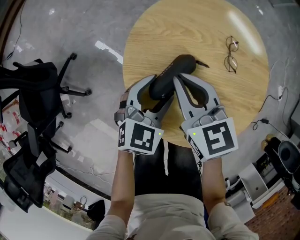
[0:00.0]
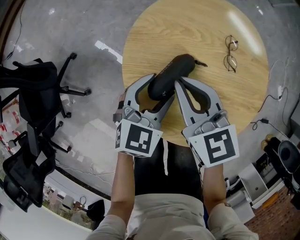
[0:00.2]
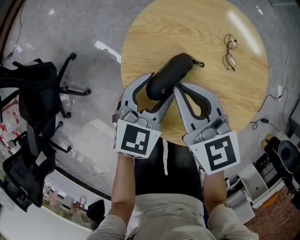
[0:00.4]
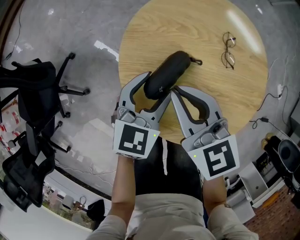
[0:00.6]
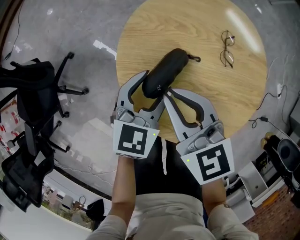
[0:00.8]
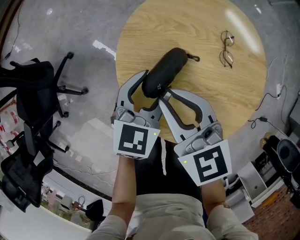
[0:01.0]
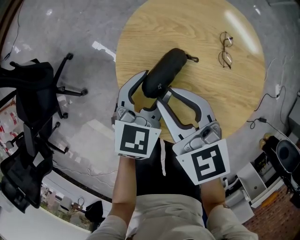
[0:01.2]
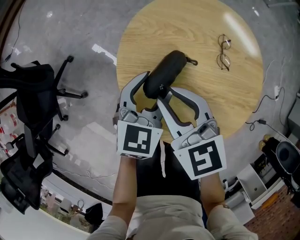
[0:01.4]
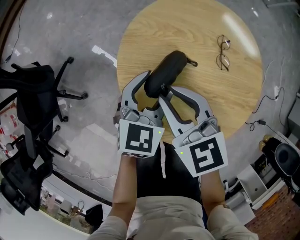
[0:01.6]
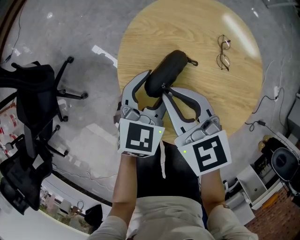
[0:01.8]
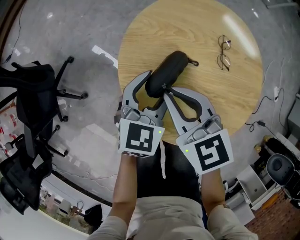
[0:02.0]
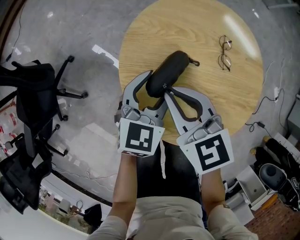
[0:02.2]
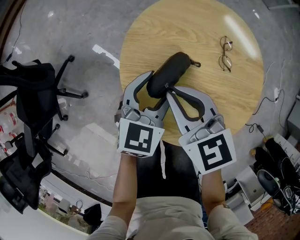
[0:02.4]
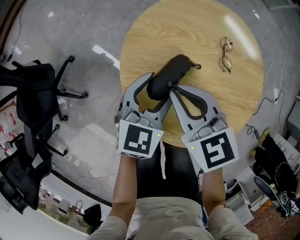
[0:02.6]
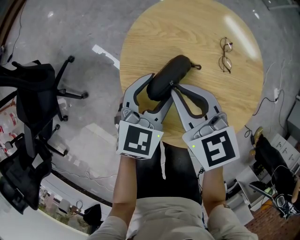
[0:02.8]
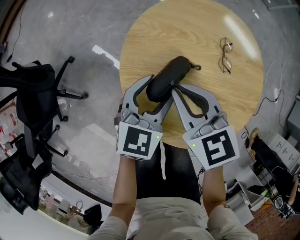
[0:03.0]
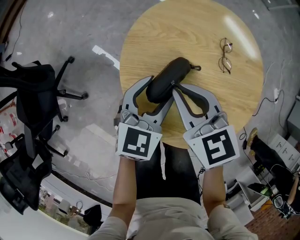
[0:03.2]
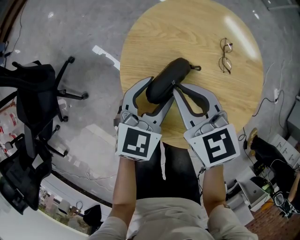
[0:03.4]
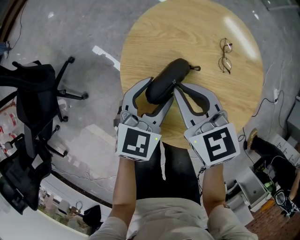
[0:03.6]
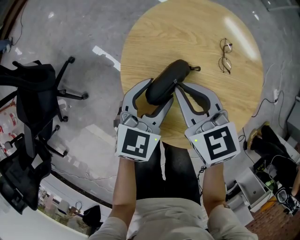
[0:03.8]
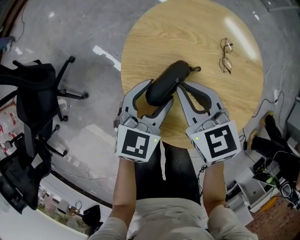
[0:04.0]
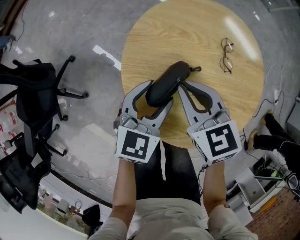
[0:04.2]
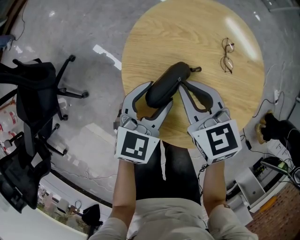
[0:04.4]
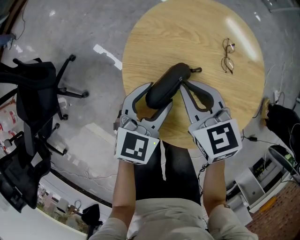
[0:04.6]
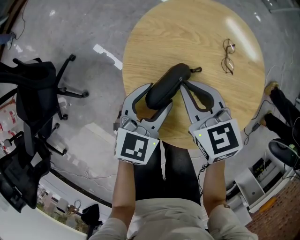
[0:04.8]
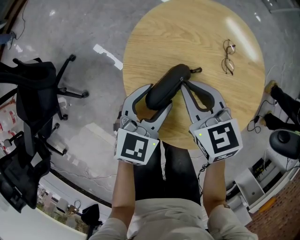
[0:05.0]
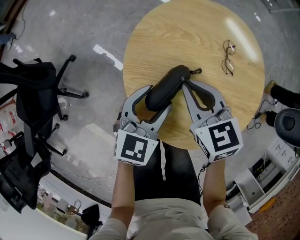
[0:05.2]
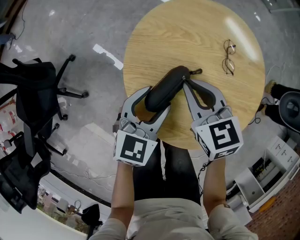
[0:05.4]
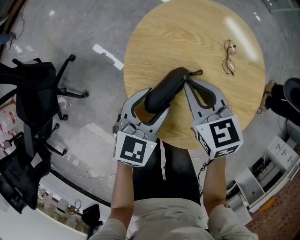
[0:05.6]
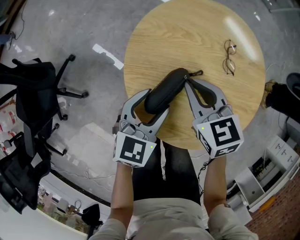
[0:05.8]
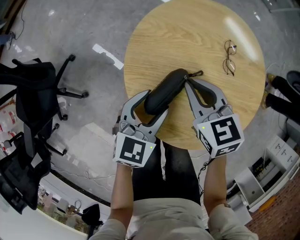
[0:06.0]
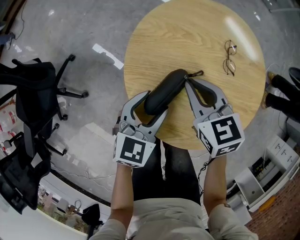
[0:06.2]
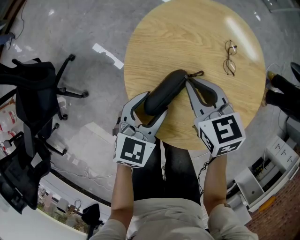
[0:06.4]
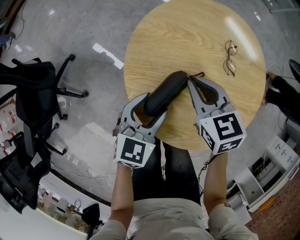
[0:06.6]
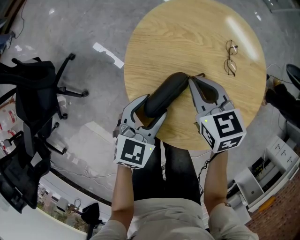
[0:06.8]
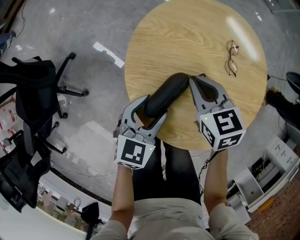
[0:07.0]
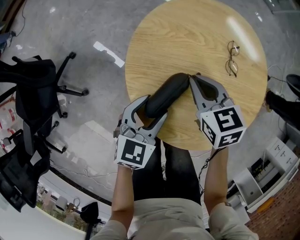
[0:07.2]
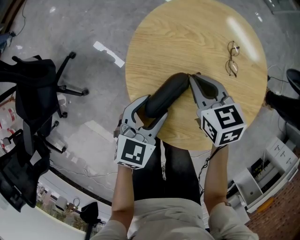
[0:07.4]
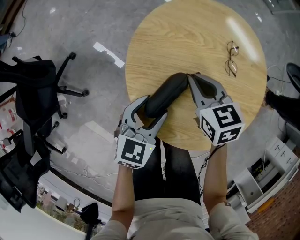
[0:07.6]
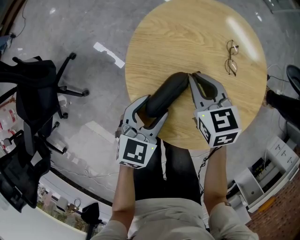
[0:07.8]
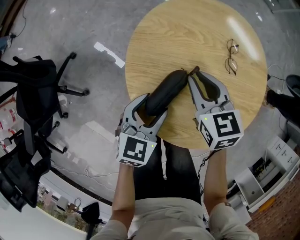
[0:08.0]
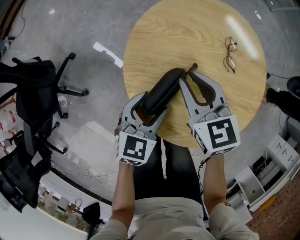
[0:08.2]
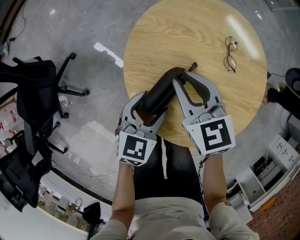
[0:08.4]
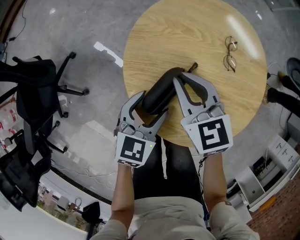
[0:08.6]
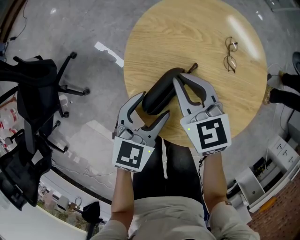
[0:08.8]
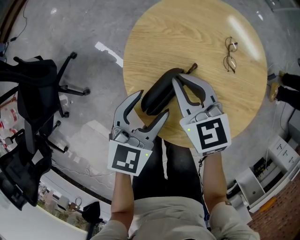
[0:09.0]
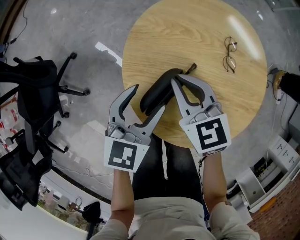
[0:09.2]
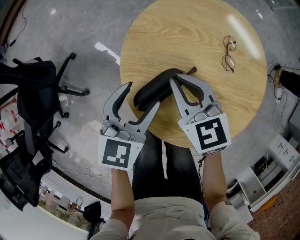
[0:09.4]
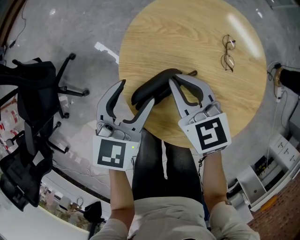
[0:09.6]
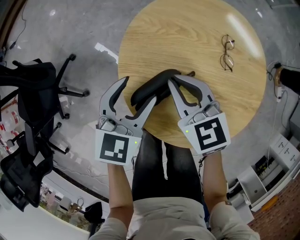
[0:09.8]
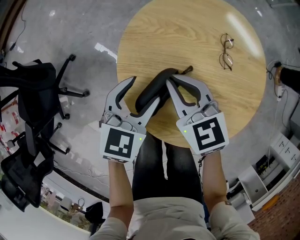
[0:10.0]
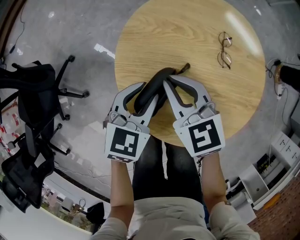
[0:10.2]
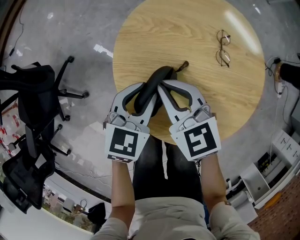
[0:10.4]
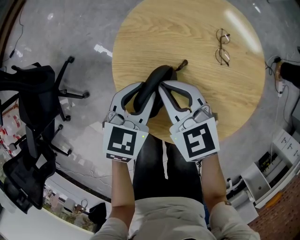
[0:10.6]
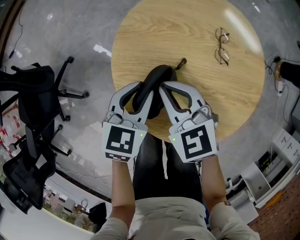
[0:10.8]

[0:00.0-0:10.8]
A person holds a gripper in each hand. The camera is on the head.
0:01.6 to 0:04.6: The grippers stay close to where they were, moving slightly.
0:04.6 to 0:06.2: There are only small adjustments of the grippers.
0:06.2 to 0:07.8: The grippers move only a little.
0:07.8 to 0:09.2: The right gripper goes roughly 5 cm to the left, while the left gripper goes approximately 5 cm upward.
0:09.2 to 0:10.8: The left gripper closes up.

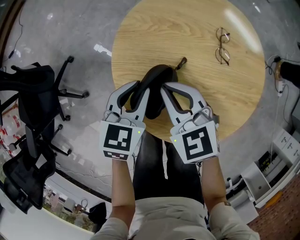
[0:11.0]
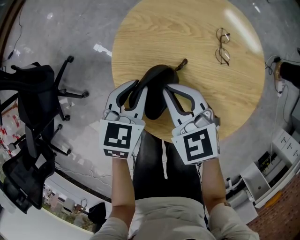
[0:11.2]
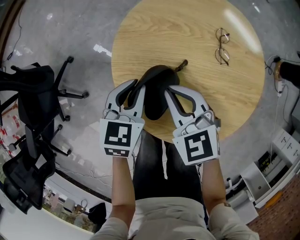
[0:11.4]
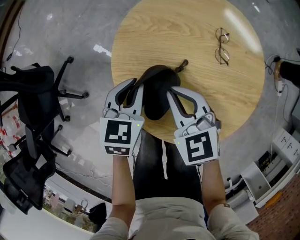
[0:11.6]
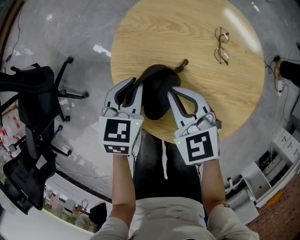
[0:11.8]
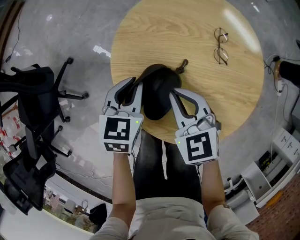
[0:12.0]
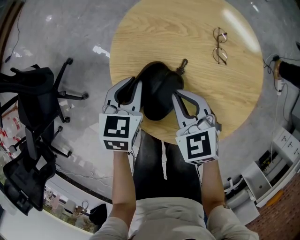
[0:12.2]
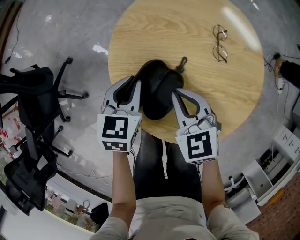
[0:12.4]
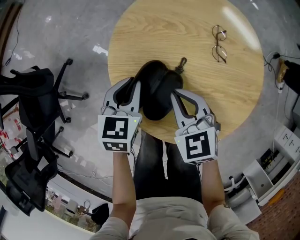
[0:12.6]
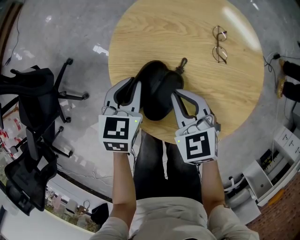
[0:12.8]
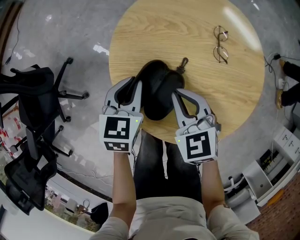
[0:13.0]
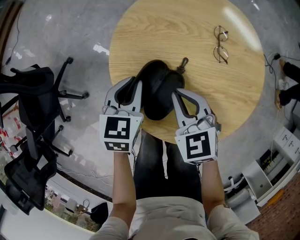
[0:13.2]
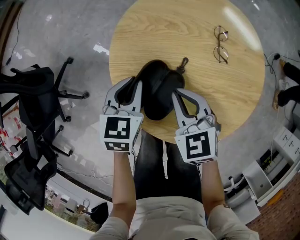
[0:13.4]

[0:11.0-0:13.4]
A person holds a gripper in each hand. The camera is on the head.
0:11.0 to 0:12.2: The right gripper moves roughly 5 cm.
0:12.2 to 0:13.4: The two grippers keep their place.

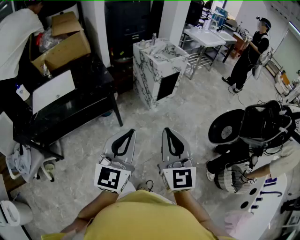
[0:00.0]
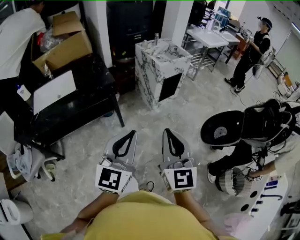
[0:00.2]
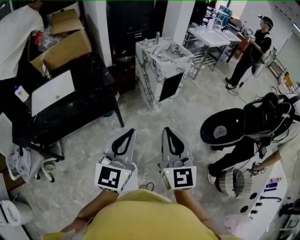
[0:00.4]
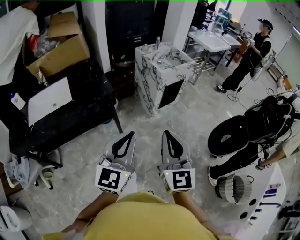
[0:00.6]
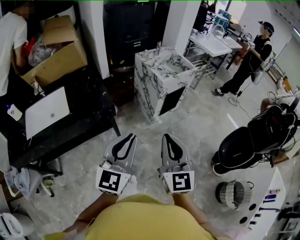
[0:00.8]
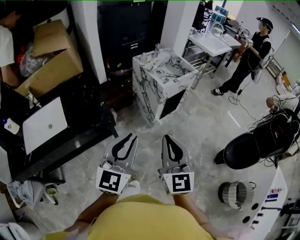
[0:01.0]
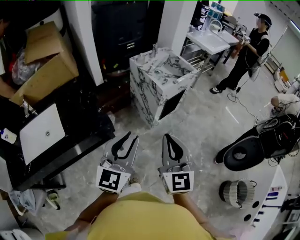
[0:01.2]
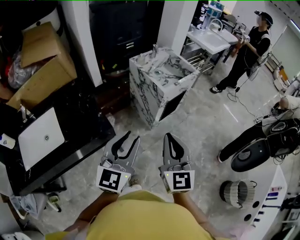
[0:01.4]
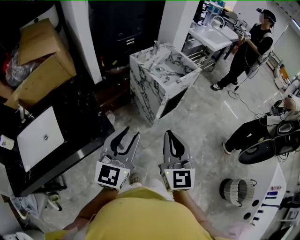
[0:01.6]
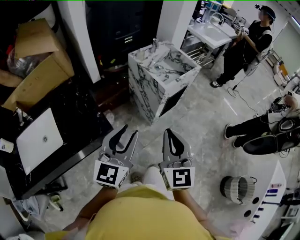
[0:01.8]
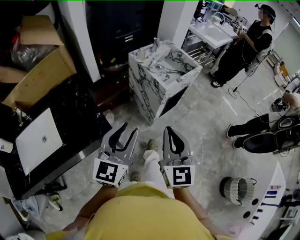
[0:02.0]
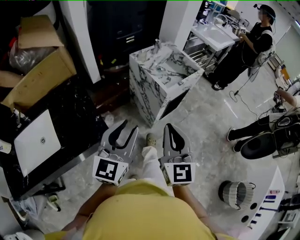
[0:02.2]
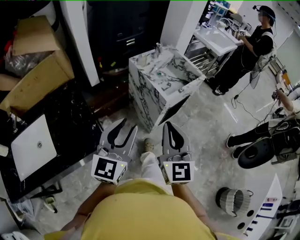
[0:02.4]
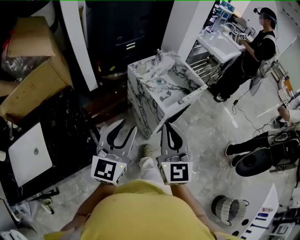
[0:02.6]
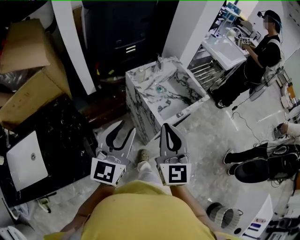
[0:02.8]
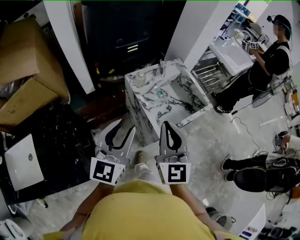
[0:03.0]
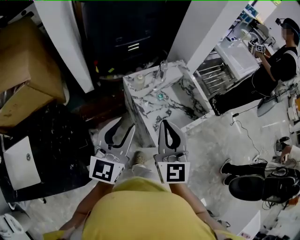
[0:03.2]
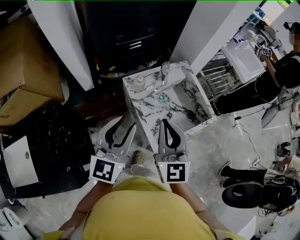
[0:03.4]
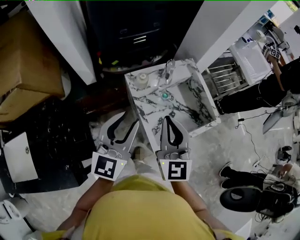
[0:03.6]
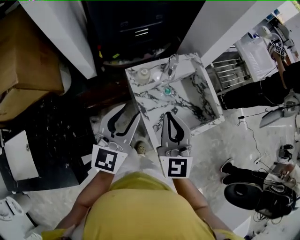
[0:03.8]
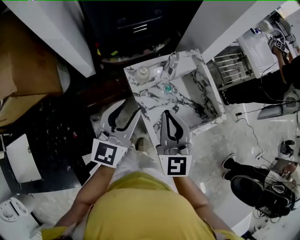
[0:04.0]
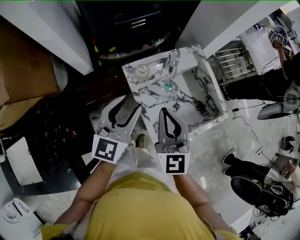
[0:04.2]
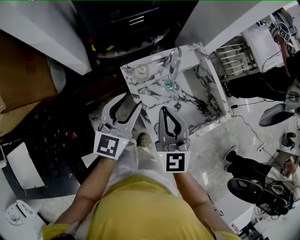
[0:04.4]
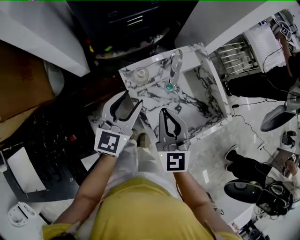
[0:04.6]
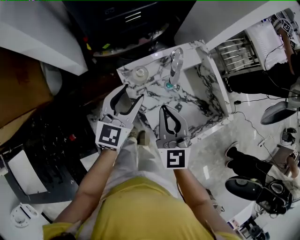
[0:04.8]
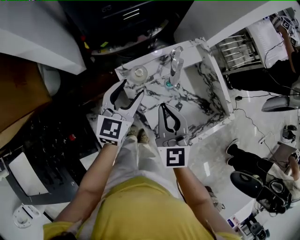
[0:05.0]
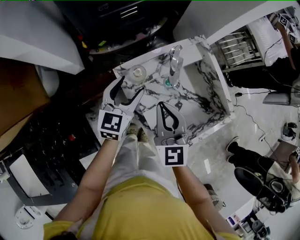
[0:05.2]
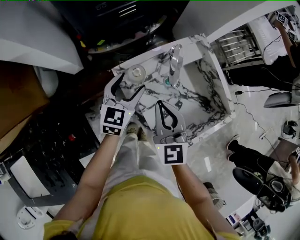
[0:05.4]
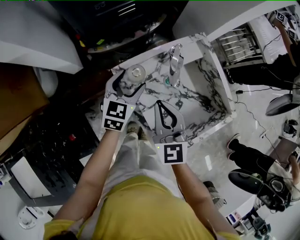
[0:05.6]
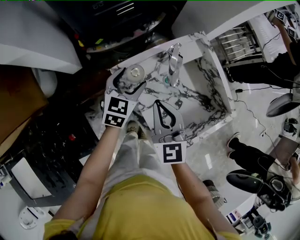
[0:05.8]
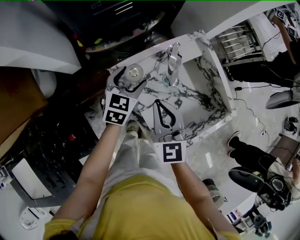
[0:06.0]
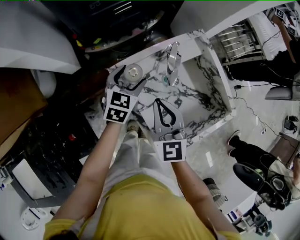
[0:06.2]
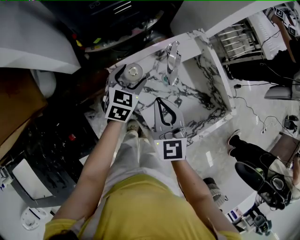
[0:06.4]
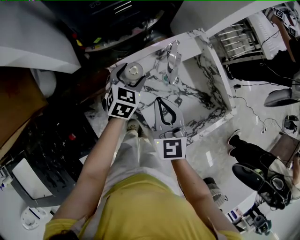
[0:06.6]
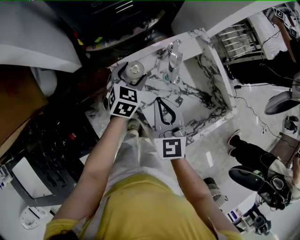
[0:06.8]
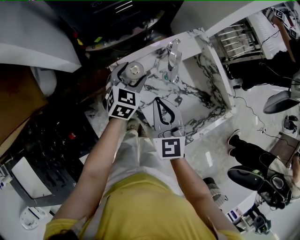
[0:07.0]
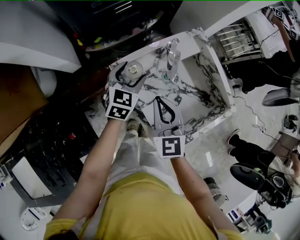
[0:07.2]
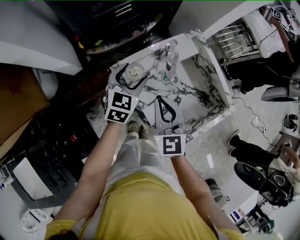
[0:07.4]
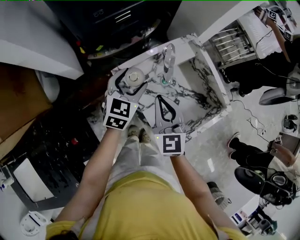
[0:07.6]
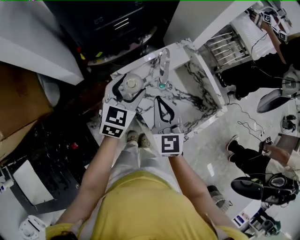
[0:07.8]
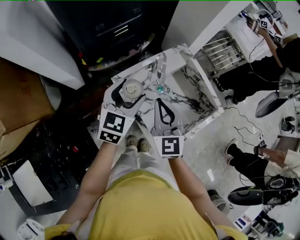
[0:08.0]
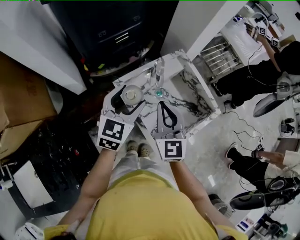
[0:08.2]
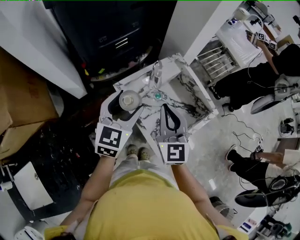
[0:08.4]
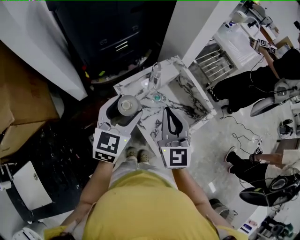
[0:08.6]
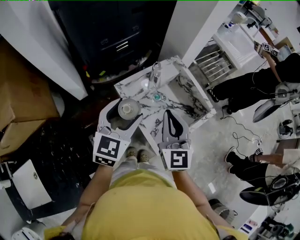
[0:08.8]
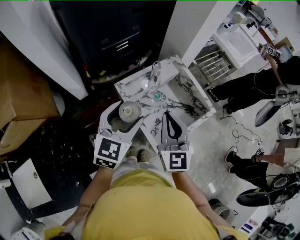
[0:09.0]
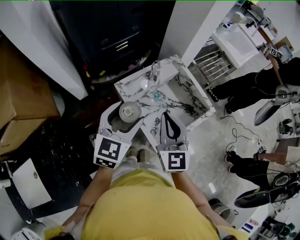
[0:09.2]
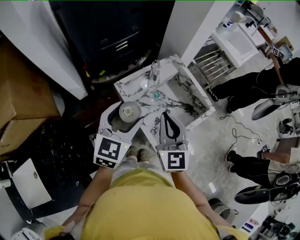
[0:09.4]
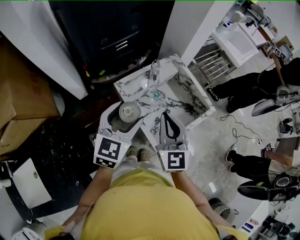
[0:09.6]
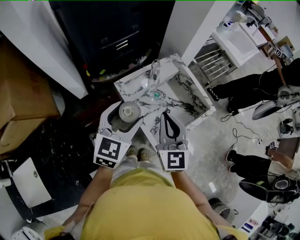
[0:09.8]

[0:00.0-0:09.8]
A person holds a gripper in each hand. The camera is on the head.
0:00.0 to 0:01.4: Both grippers move forward, approximately 35 cm.
0:01.4 to 0:02.8: The grippers both shift forward by roughly 30 cm.
0:02.8 to 0:04.2: Both grippers travel together forward, some 30 cm.
0:04.2 to 0:05.6: The left gripper shifts roughly 25 cm downward and forward, rotates roughly 20 degrees, and opens its fingers; the right gripper is displaced downward and forward by roughly 15 cm.
0:05.6 to 0:07.0: The grippers stay close to where they were, moving slightly.
0:07.0 to 0:08.4: The left gripper goes about 25 cm upward and backward, and swivels some 20 degrees, while the right gripper is displaced upward by some 15 cm.
0:08.4 to 0:09.8: The two grippers go roughly 5 cm backward.

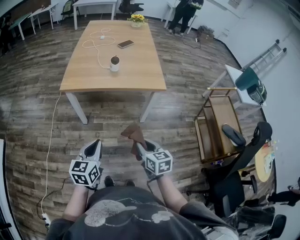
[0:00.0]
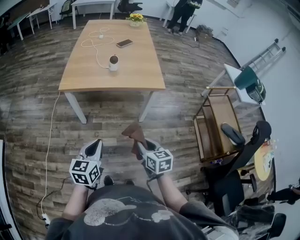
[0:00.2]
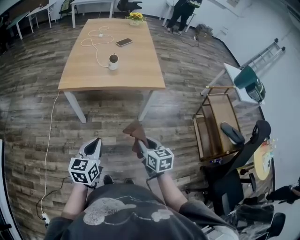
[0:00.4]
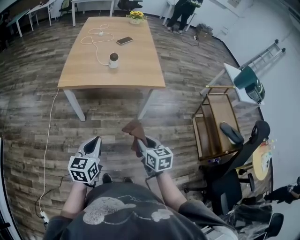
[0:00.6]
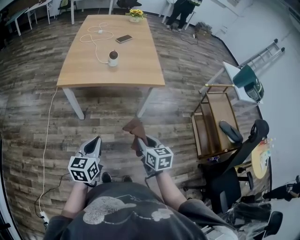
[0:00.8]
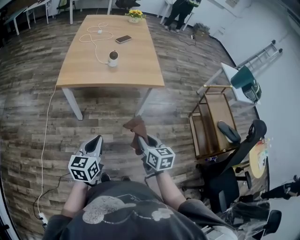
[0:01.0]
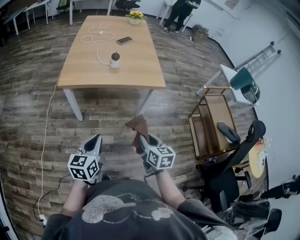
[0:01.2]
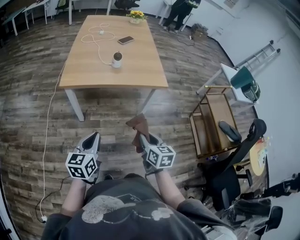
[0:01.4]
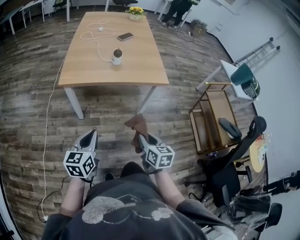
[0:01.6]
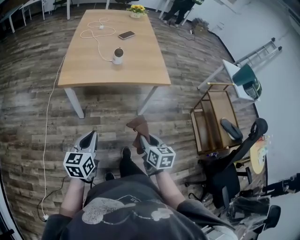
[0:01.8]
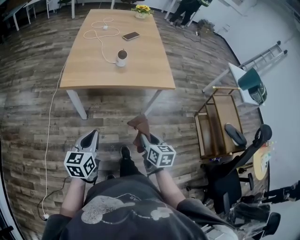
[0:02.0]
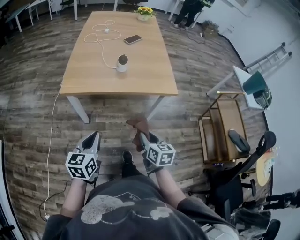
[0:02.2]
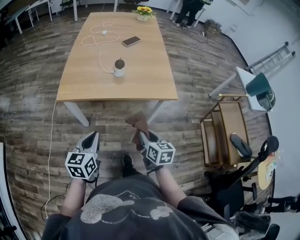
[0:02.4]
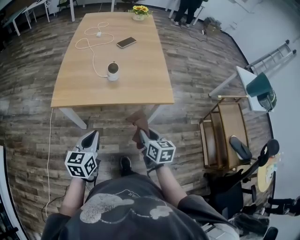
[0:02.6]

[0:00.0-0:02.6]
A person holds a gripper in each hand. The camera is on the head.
0:00.0 to 0:01.2: The grippers make only small movements.
0:01.2 to 0:02.6: The grippers both shift forward by some 20 cm.
